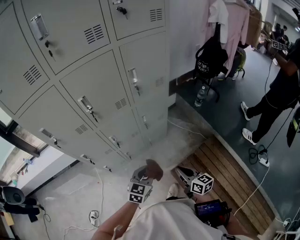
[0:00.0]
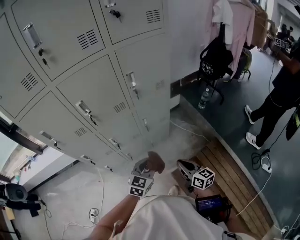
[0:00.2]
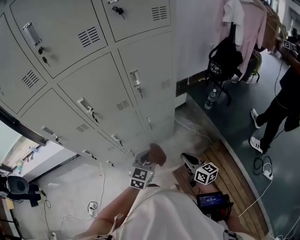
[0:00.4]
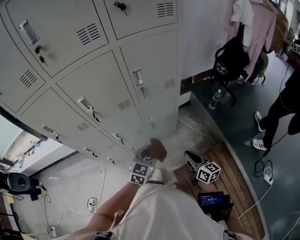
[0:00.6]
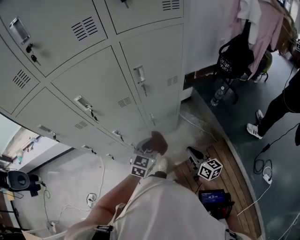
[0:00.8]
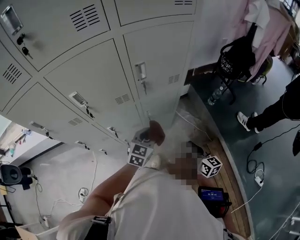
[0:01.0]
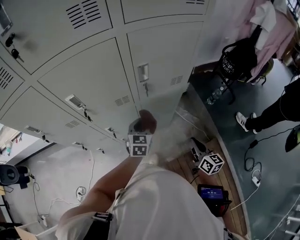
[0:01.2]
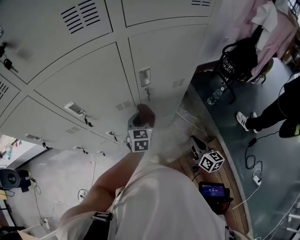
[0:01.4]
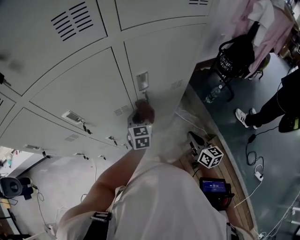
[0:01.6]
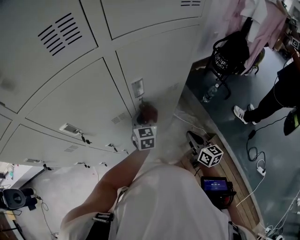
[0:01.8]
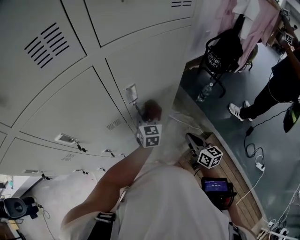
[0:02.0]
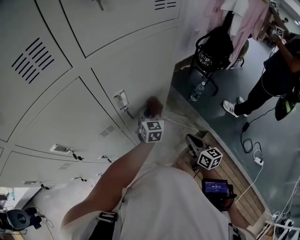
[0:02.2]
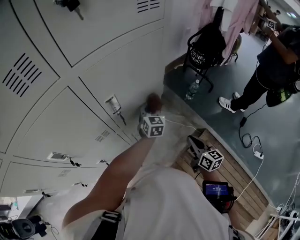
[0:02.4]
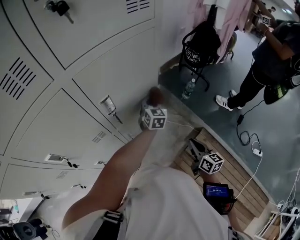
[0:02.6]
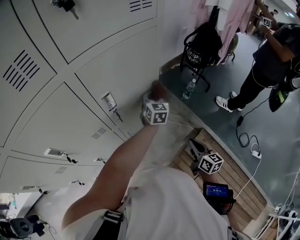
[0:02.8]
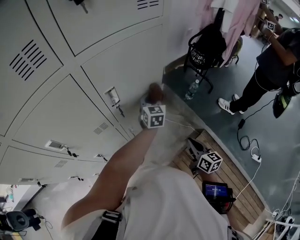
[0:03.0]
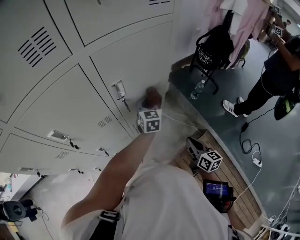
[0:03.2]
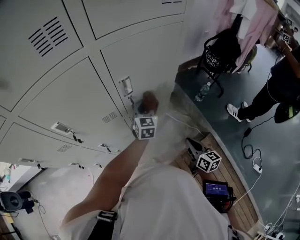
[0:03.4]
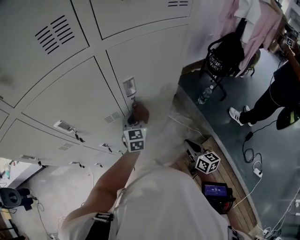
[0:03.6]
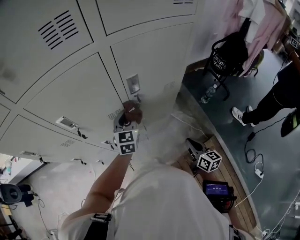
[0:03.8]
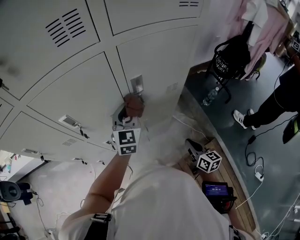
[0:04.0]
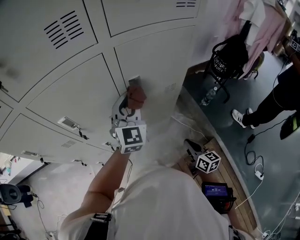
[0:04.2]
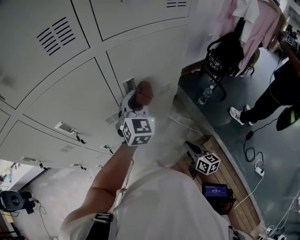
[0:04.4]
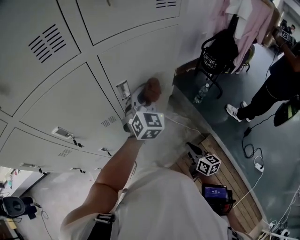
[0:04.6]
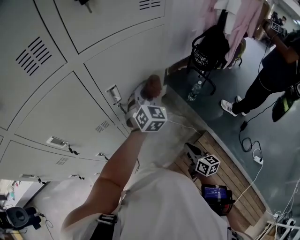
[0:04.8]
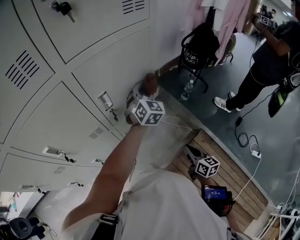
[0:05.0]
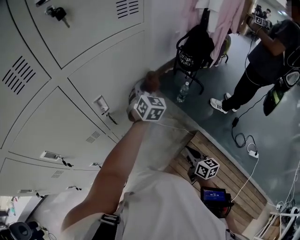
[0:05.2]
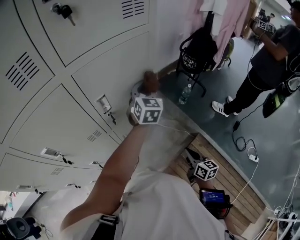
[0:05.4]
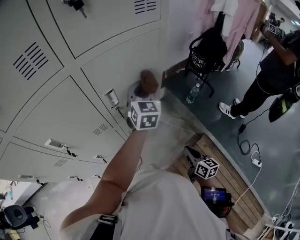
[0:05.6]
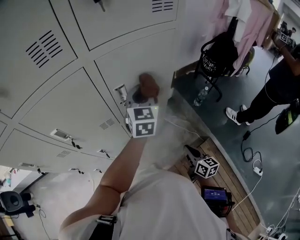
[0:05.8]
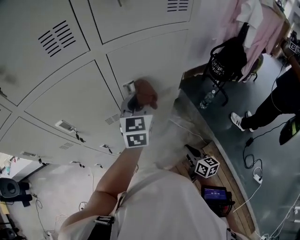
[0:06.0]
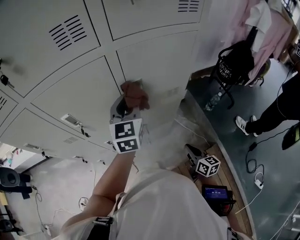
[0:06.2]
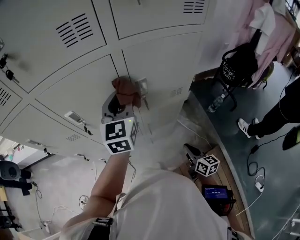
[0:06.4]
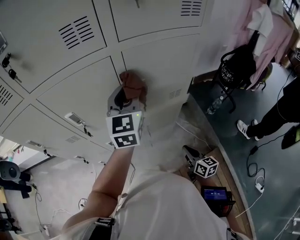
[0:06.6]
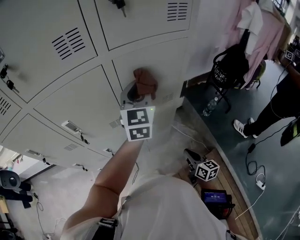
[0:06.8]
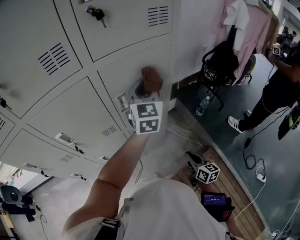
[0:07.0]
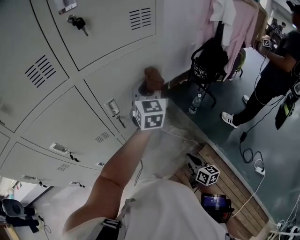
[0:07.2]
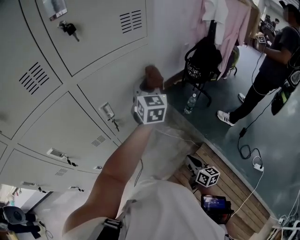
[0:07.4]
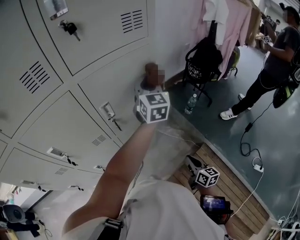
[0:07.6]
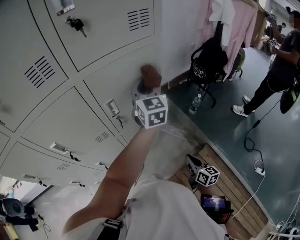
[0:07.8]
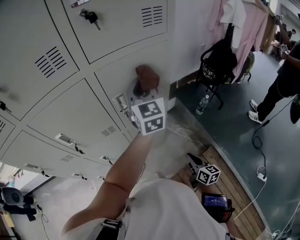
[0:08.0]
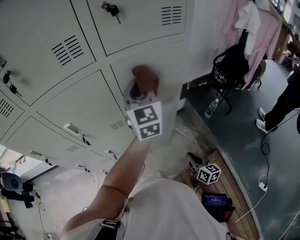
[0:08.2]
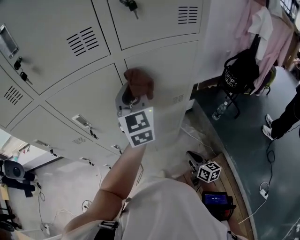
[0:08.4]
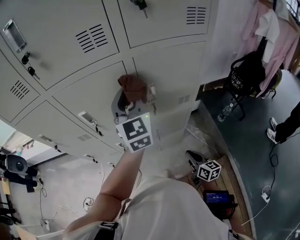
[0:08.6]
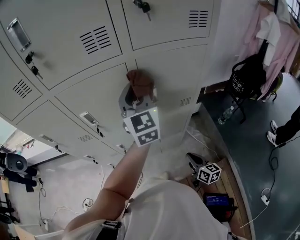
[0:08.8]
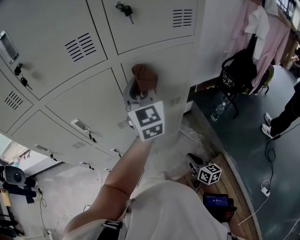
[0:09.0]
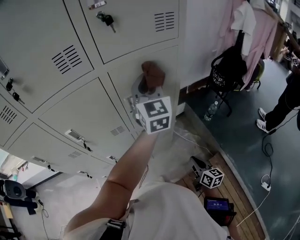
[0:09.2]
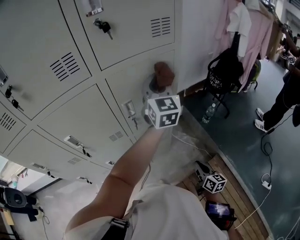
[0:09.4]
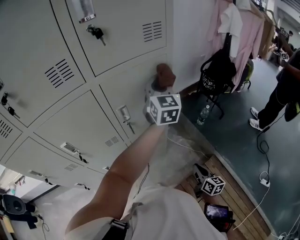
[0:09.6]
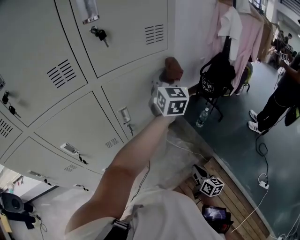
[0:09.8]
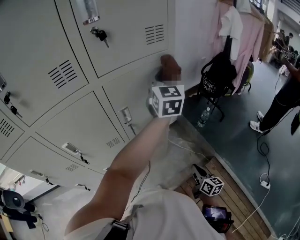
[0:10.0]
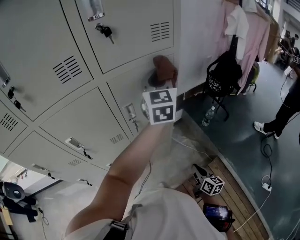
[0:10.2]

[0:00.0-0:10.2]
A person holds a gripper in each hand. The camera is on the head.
0:00.0 to 0:01.4: The left gripper shifts about 35 cm forward, and changes its angle by about 30 degrees, while the right gripper heads forward and to the right, covering roughly 25 cm.
0:01.4 to 0:03.0: The left gripper shifts approximately 25 cm to the right and forward. The right gripper shifts some 5 cm to the right.
0:03.0 to 0:04.4: The left gripper shifts some 20 cm to the left and upward, and changes its angle by approximately 20 degrees; the right gripper heads to the left, covering roughly 5 cm.
0:04.4 to 0:05.8: The left gripper travels to the right and back again, approximately 15 cm each way.
0:05.8 to 0:07.2: The left gripper travels upward by approximately 5 cm, and moves approximately 15 cm to the left and comes back.
0:07.2 to 0:08.8: The right gripper moves some 10 cm, and changes its angle by roughly 20 degrees. Meanwhile the left gripper moves roughly 25 cm, and swivels roughly 30 degrees.
0:08.8 to 0:10.2: The left gripper ends up approximately 20 cm from where it was, and changes its angle by some 30 degrees. The right gripper ends up about 10 cm from where it was, and rotates approximately 20 degrees.

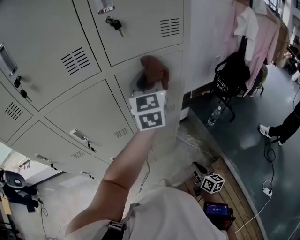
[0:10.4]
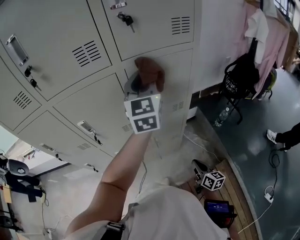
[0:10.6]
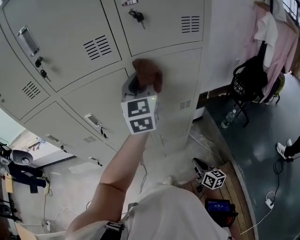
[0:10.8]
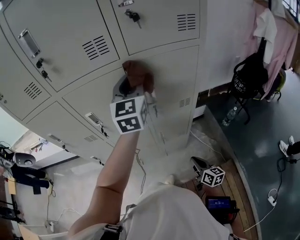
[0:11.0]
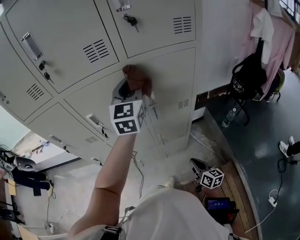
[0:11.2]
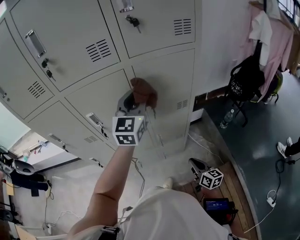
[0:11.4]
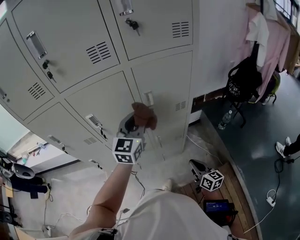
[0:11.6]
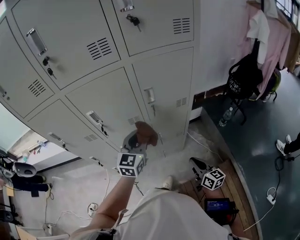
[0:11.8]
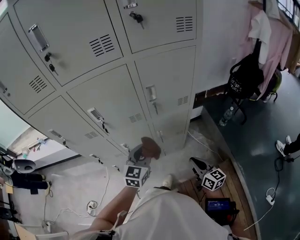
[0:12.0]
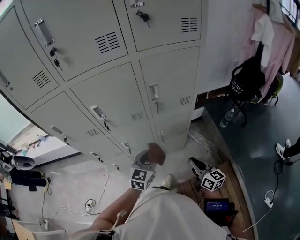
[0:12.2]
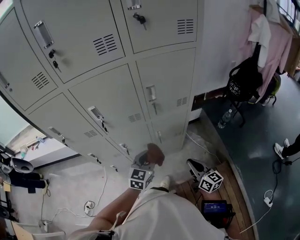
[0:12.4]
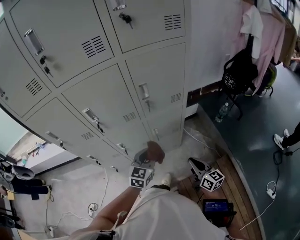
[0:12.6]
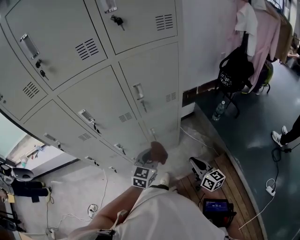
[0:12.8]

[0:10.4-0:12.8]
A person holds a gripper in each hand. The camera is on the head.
0:10.4 to 0:11.6: The right gripper is displaced to the left by approximately 5 cm. The left gripper goes some 20 cm downward, to the left and backward.
0:11.6 to 0:12.8: The left gripper travels downward and backward by some 25 cm, and turns by some 20 degrees, while the right gripper is displaced backward by about 5 cm.

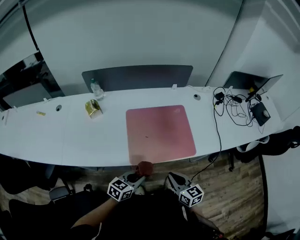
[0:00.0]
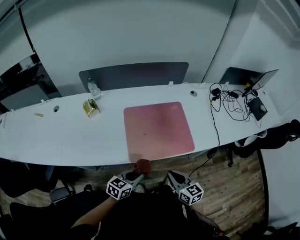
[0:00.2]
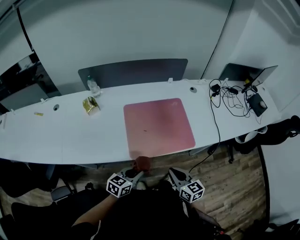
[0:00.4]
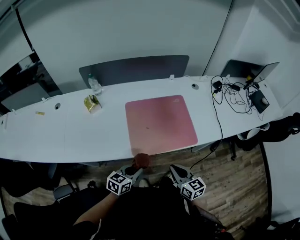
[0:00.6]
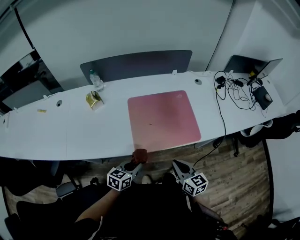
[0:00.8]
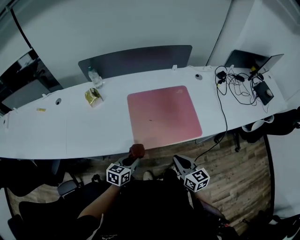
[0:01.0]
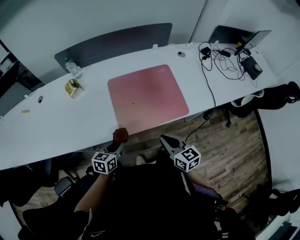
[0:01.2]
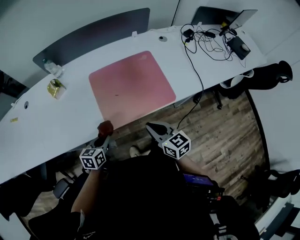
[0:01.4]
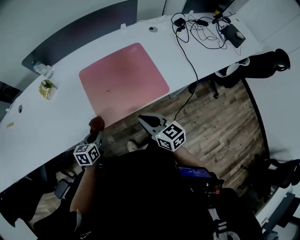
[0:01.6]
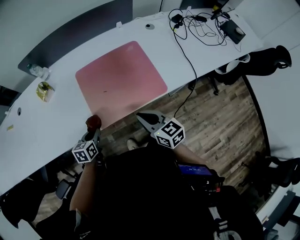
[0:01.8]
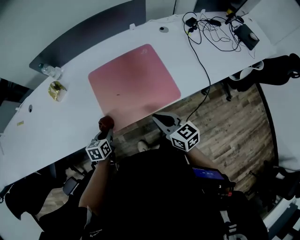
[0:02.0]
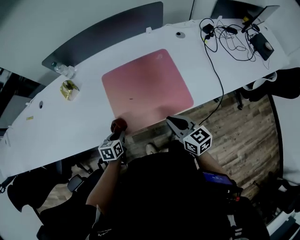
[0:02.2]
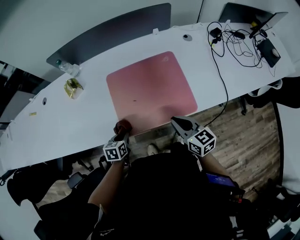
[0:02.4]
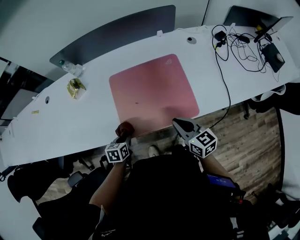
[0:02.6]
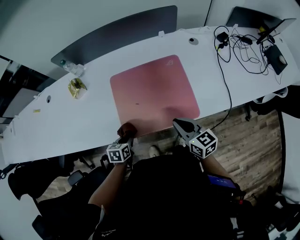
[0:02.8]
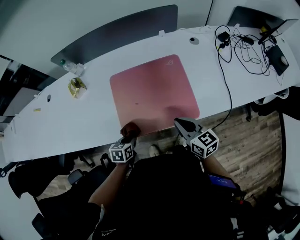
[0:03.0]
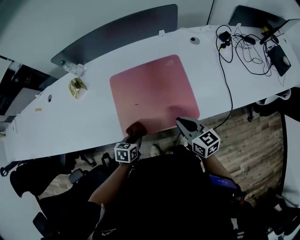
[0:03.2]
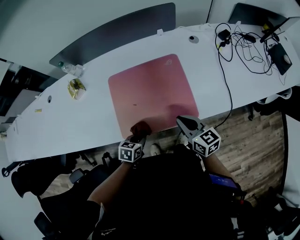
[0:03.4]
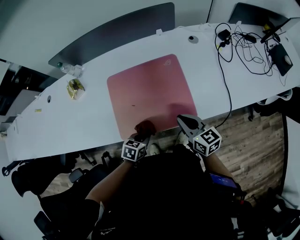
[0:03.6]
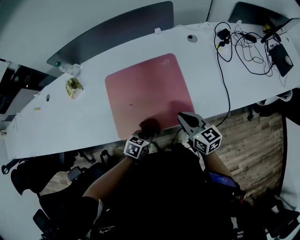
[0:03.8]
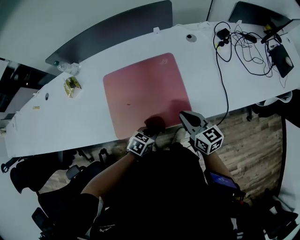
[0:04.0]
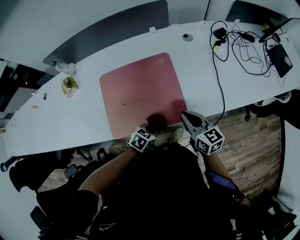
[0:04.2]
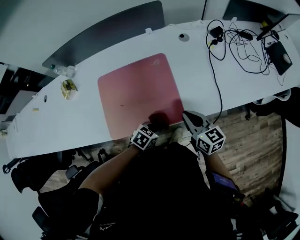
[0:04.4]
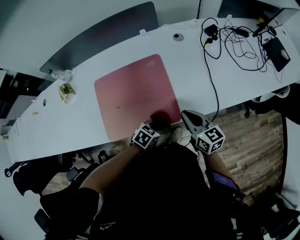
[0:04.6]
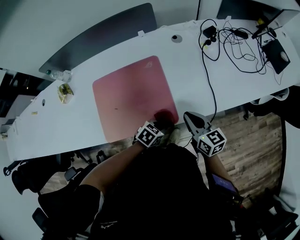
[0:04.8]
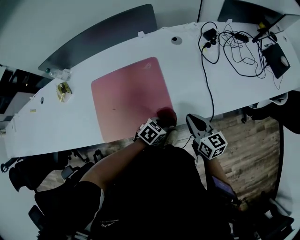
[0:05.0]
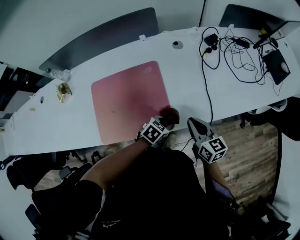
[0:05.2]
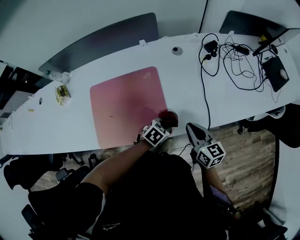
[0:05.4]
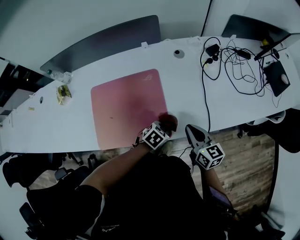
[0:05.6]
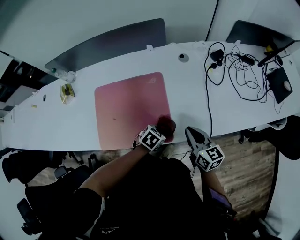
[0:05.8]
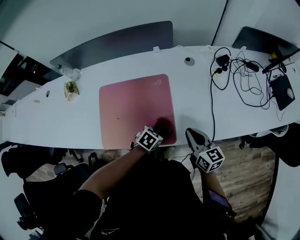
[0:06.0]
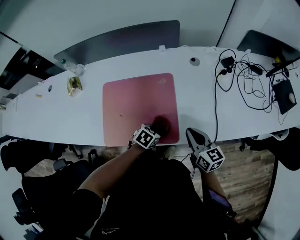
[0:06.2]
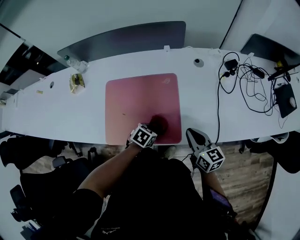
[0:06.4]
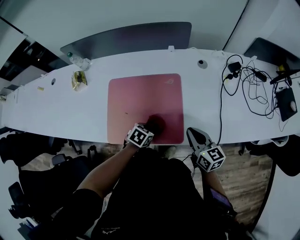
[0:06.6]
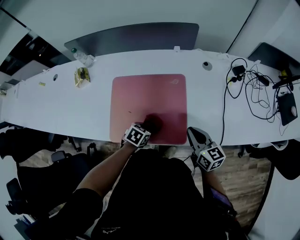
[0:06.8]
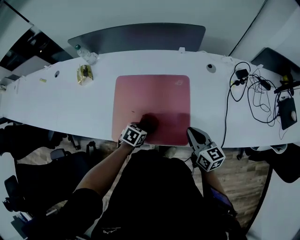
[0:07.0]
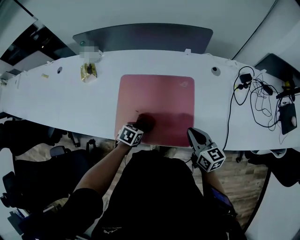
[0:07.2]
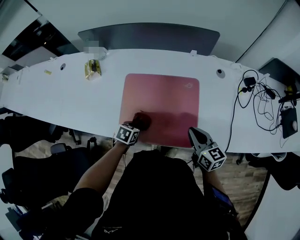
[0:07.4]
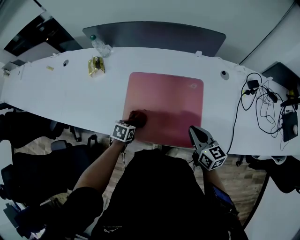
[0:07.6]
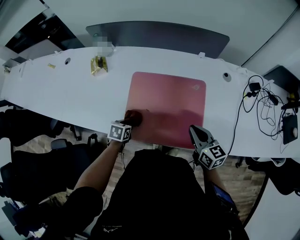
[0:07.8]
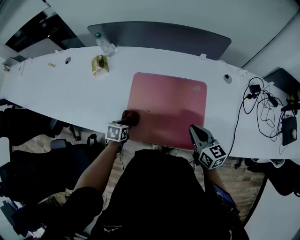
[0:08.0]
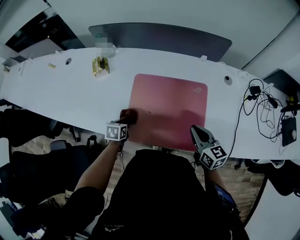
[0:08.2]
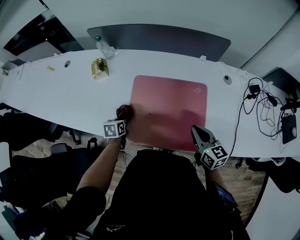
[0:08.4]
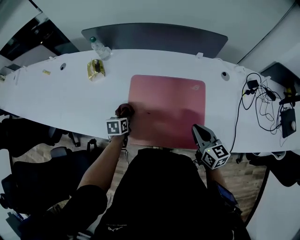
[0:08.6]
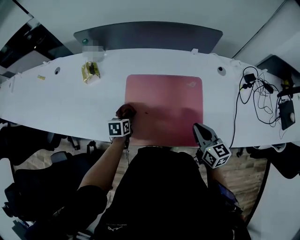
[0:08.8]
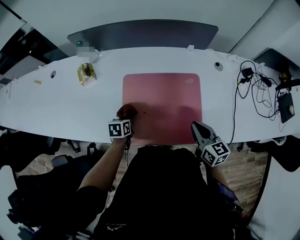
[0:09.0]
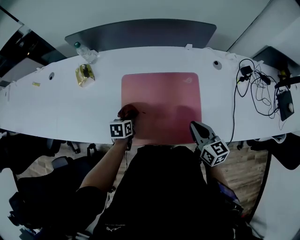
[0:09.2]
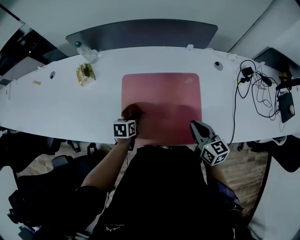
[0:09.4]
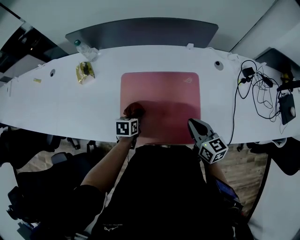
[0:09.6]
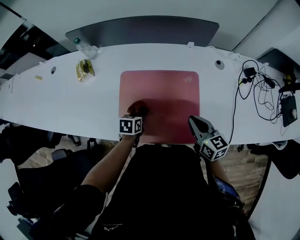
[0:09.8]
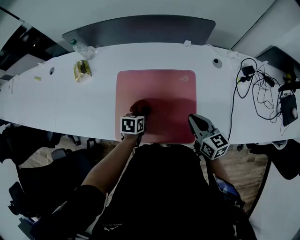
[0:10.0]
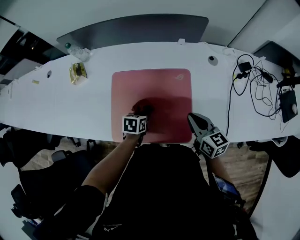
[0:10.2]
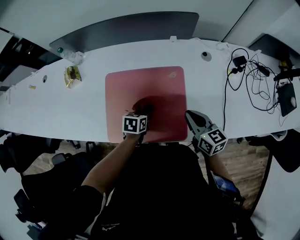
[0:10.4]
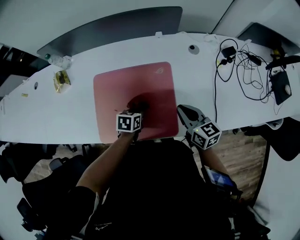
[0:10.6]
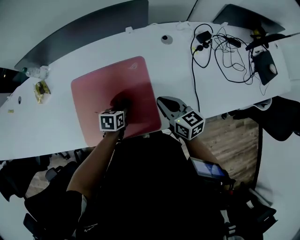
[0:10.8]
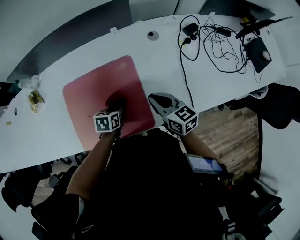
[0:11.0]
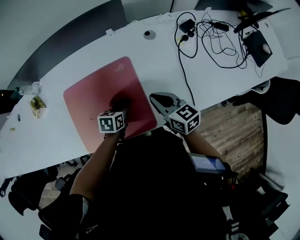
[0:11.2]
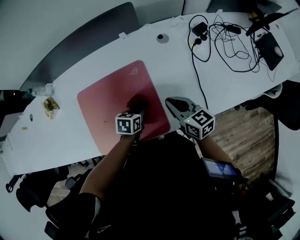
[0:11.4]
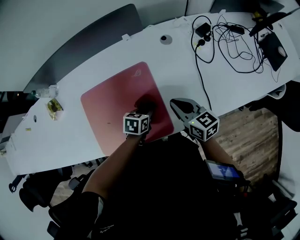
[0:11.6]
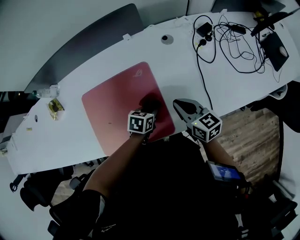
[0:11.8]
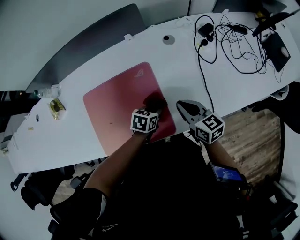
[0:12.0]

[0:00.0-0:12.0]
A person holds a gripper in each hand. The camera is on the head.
0:00.0 to 0:01.6: The left gripper heads to the left, downward and forward, covering some 15 cm, and turns by roughly 20 degrees.
0:01.6 to 0:03.0: The right gripper heads to the right and forward, covering roughly 10 cm, while the left gripper heads to the right and downward, covering approximately 10 cm.
0:03.0 to 0:04.4: The left gripper travels to the right by approximately 25 cm, and changes its angle by roughly 40 degrees. The right gripper shifts approximately 15 cm to the right and forward.
0:04.4 to 0:06.0: The left gripper heads forward, covering about 10 cm; the right gripper moves forward, roughly 5 cm.
0:06.0 to 0:07.6: The left gripper moves to the left, approximately 30 cm, and turns by roughly 30 degrees; the right gripper is displaced to the left by some 15 cm.
0:07.6 to 0:09.0: The left gripper goes approximately 5 cm forward.
0:09.0 to 0:10.4: The left gripper travels to the right by about 20 cm, while the right gripper moves to the right, roughly 5 cm.
0:10.4 to 0:12.0: The right gripper shifts about 5 cm to the right. Meanwhile the left gripper heads to the right, covering approximately 15 cm, and swivels approximately 30 degrees.
